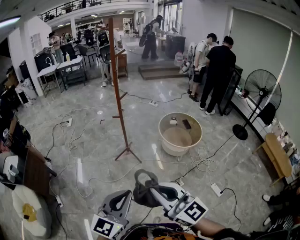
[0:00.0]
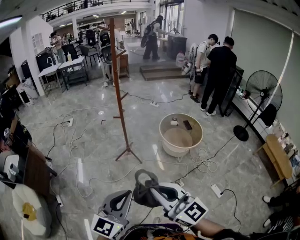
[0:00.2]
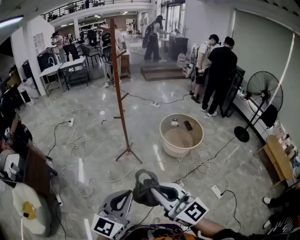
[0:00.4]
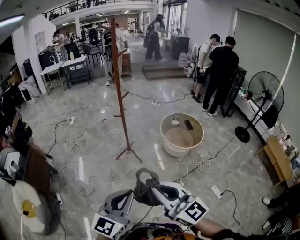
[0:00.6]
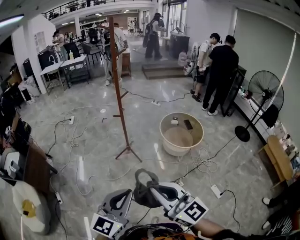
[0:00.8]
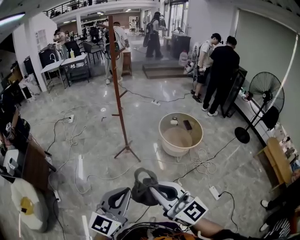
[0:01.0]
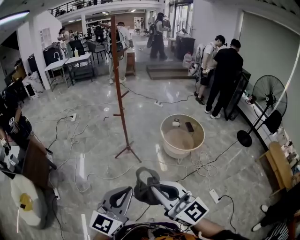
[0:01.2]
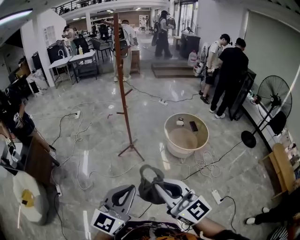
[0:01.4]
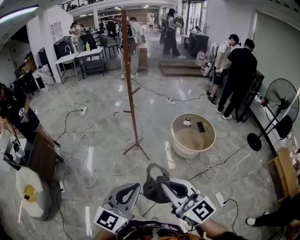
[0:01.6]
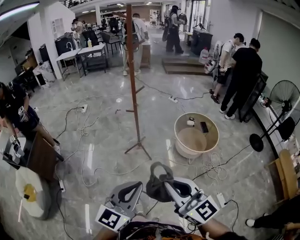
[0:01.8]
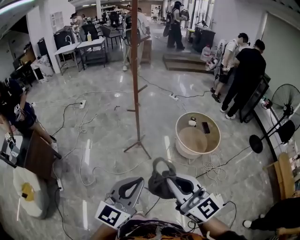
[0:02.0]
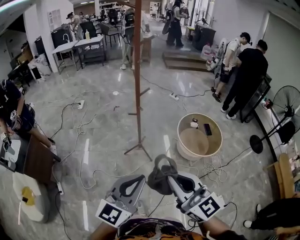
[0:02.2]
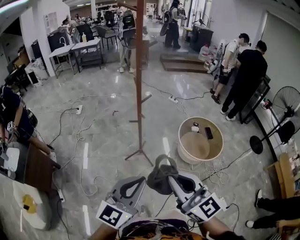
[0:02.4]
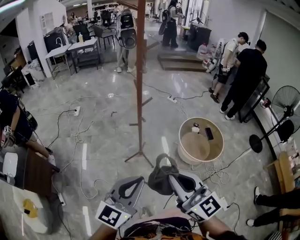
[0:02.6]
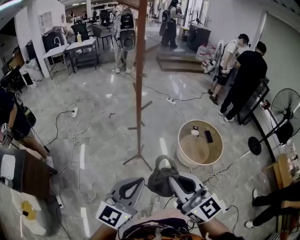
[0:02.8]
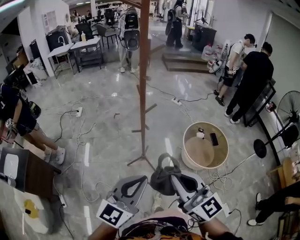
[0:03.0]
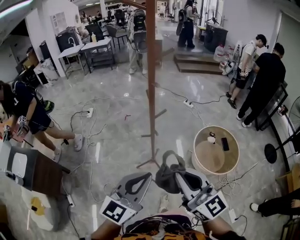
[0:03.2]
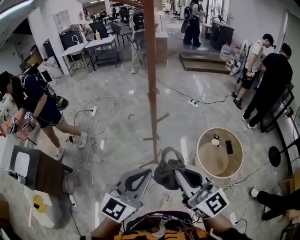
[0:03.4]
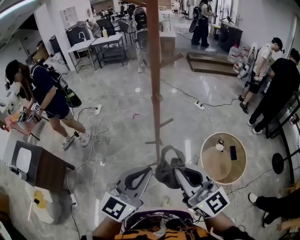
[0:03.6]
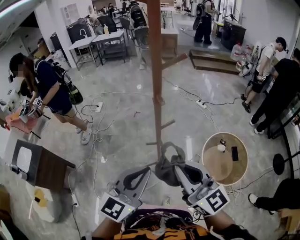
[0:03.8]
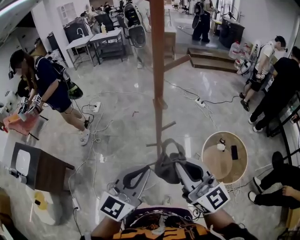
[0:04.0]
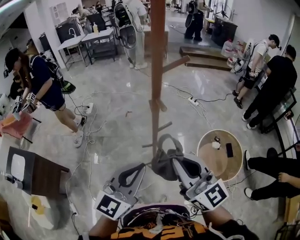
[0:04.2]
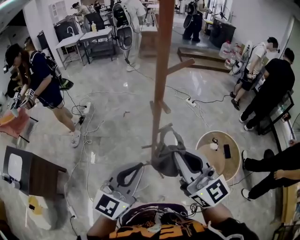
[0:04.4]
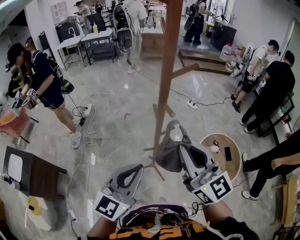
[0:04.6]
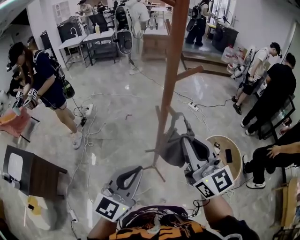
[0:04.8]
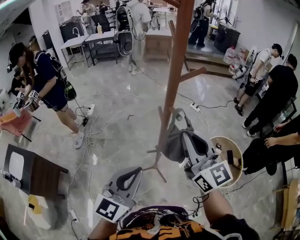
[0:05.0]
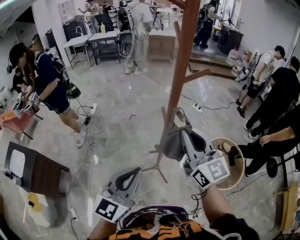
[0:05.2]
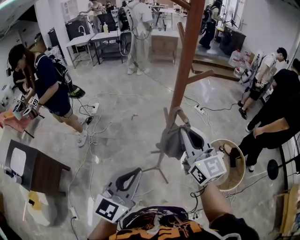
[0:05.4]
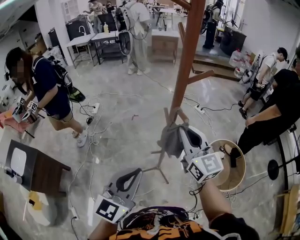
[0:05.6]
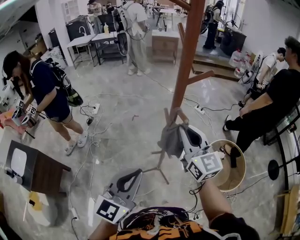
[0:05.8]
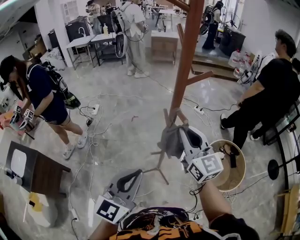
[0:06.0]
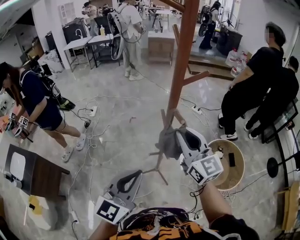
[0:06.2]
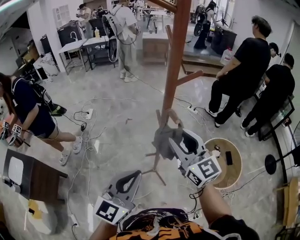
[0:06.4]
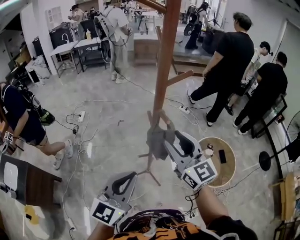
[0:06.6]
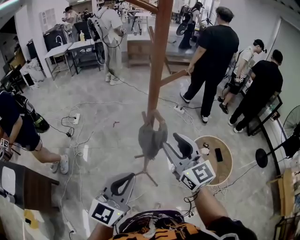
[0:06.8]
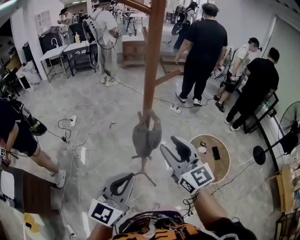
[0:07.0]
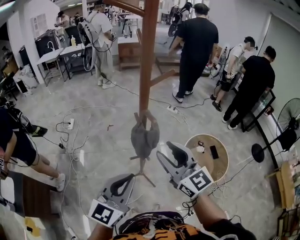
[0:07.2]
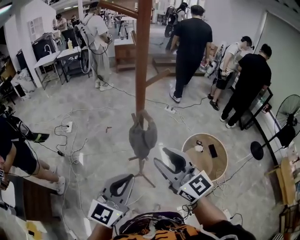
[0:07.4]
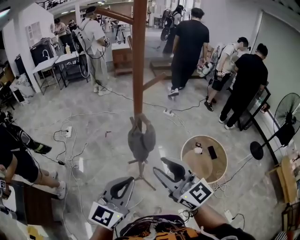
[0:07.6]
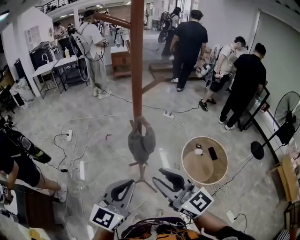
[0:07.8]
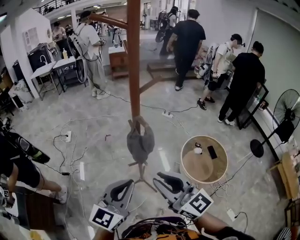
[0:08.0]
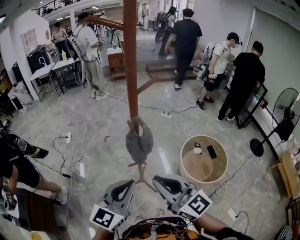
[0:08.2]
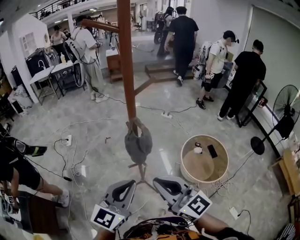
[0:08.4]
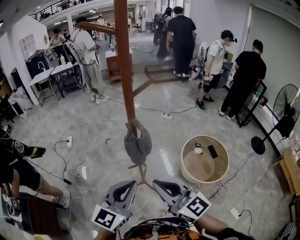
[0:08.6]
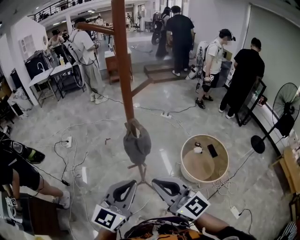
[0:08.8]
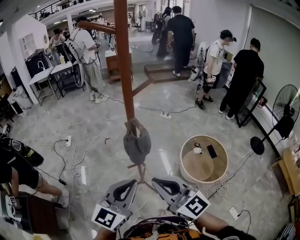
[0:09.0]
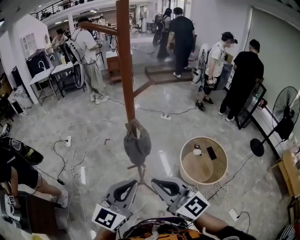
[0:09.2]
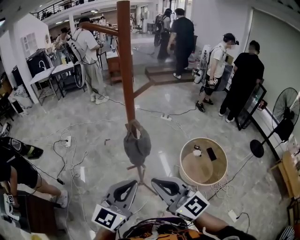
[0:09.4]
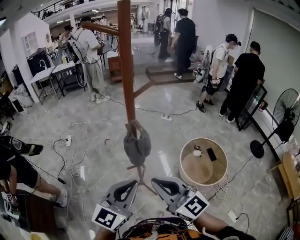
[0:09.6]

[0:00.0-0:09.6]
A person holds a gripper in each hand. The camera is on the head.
0:00.0 to 0:01.6: The grippers both shift to the right by approximately 5 cm.
0:01.6 to 0:03.2: The pair of grippers is taken forward, some 40 cm.
0:03.2 to 0:04.8: Both grippers move forward, approximately 20 cm.
0:04.8 to 0:06.4: The right gripper goes about 5 cm downward, and opens its fingers.
0:06.4 to 0:08.0: The right gripper goes about 15 cm backward.
0:08.0 to 0:09.6: The right gripper closes.

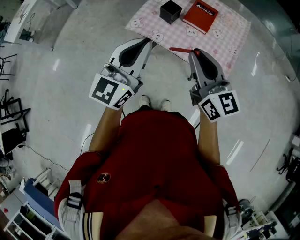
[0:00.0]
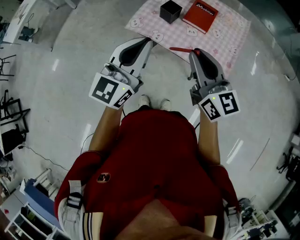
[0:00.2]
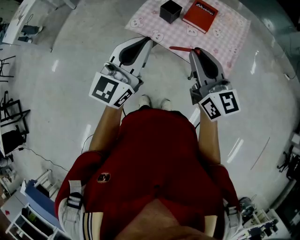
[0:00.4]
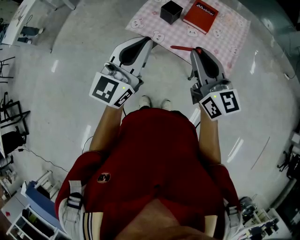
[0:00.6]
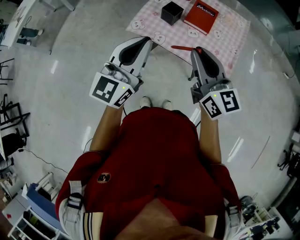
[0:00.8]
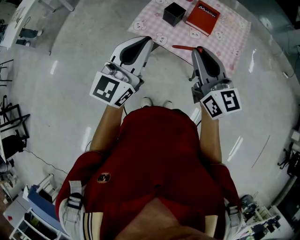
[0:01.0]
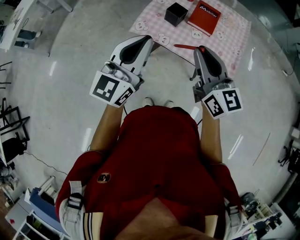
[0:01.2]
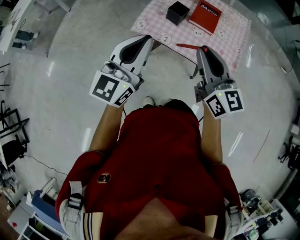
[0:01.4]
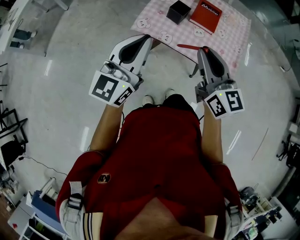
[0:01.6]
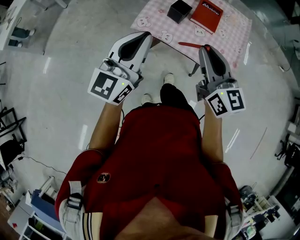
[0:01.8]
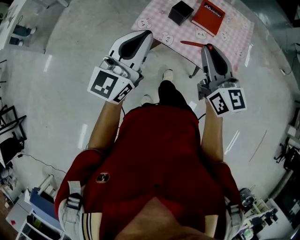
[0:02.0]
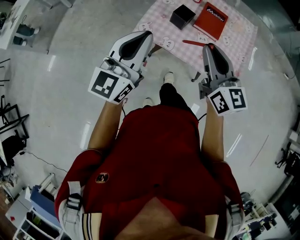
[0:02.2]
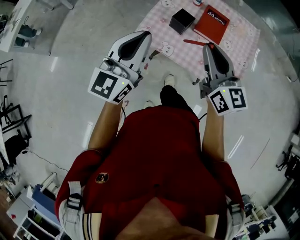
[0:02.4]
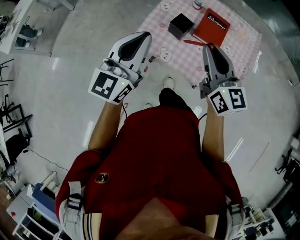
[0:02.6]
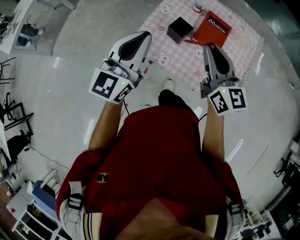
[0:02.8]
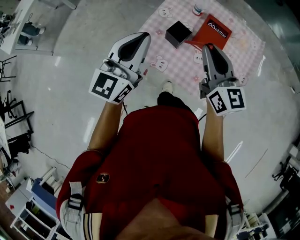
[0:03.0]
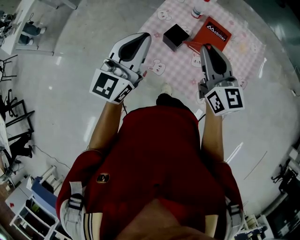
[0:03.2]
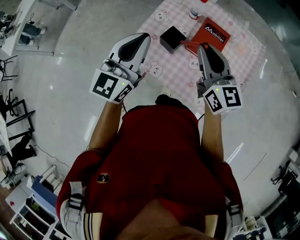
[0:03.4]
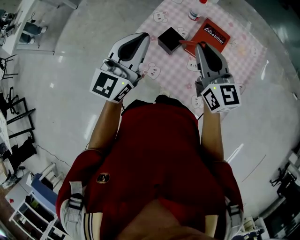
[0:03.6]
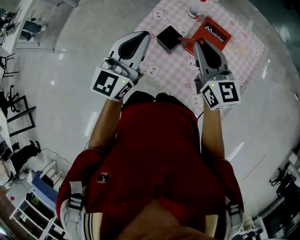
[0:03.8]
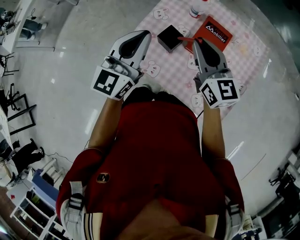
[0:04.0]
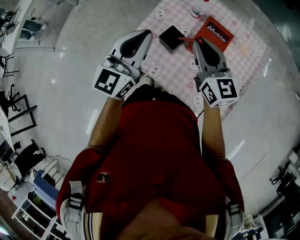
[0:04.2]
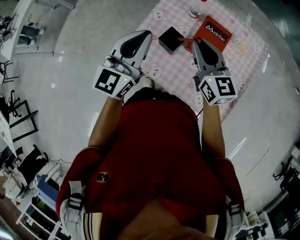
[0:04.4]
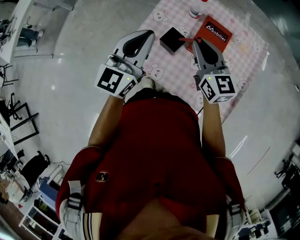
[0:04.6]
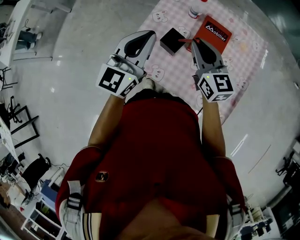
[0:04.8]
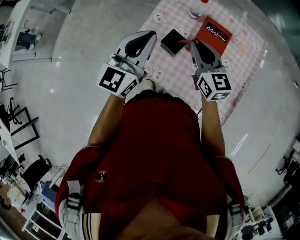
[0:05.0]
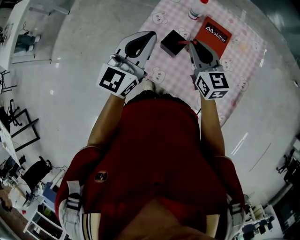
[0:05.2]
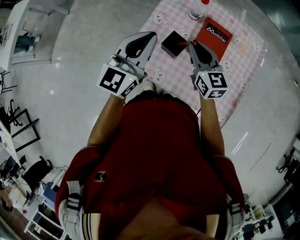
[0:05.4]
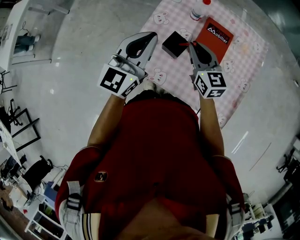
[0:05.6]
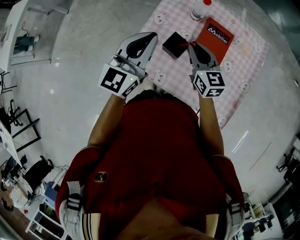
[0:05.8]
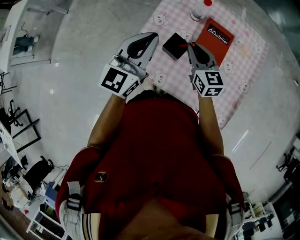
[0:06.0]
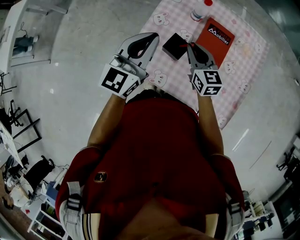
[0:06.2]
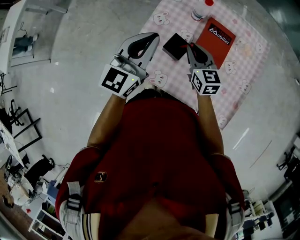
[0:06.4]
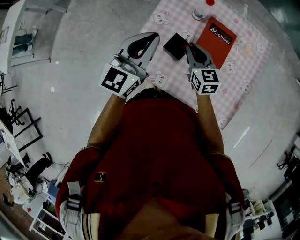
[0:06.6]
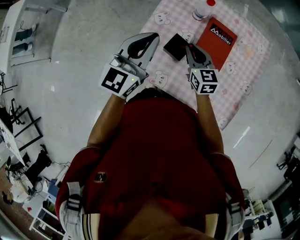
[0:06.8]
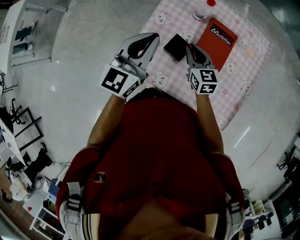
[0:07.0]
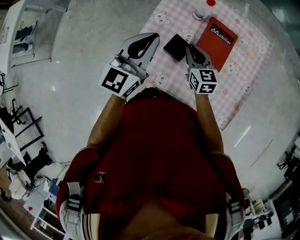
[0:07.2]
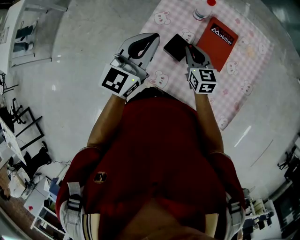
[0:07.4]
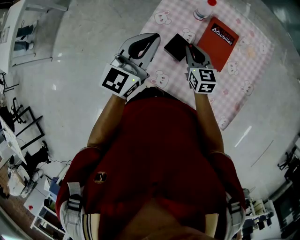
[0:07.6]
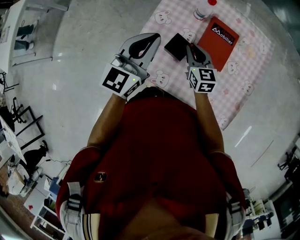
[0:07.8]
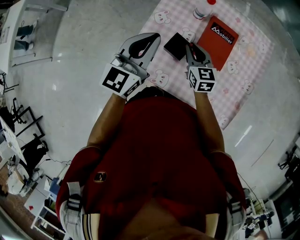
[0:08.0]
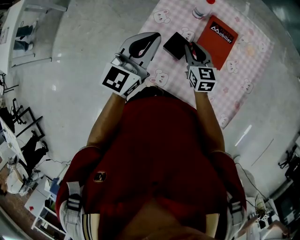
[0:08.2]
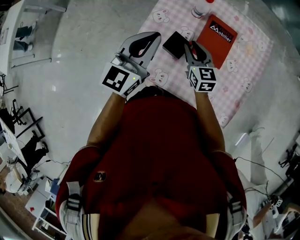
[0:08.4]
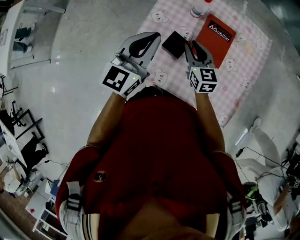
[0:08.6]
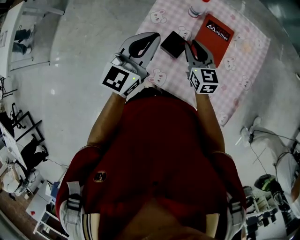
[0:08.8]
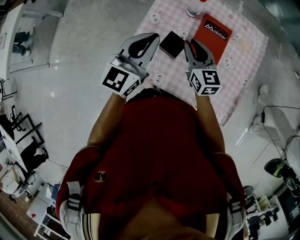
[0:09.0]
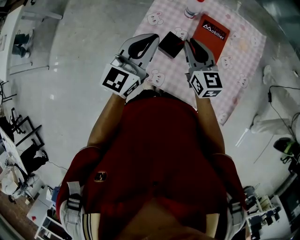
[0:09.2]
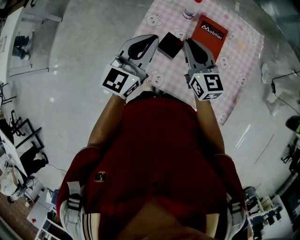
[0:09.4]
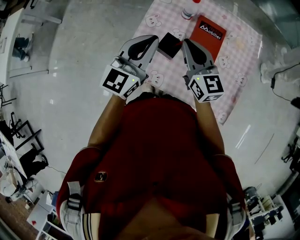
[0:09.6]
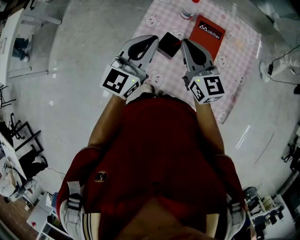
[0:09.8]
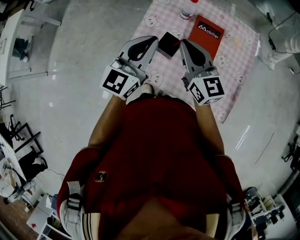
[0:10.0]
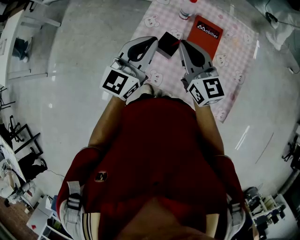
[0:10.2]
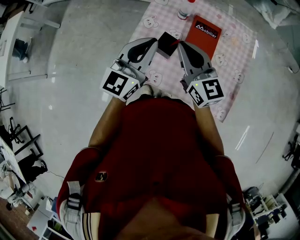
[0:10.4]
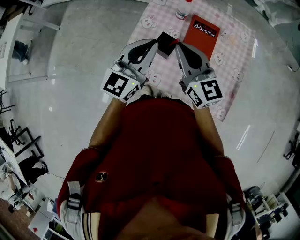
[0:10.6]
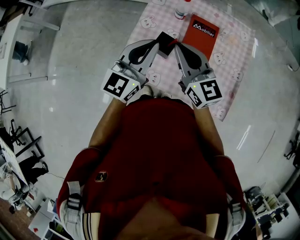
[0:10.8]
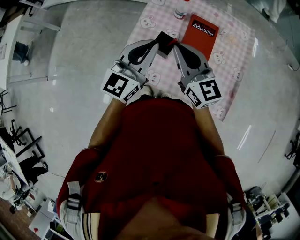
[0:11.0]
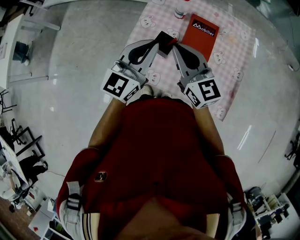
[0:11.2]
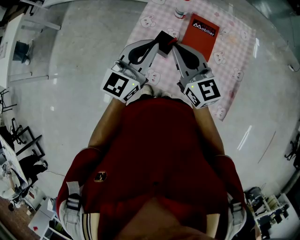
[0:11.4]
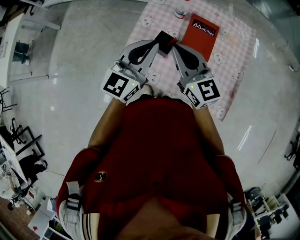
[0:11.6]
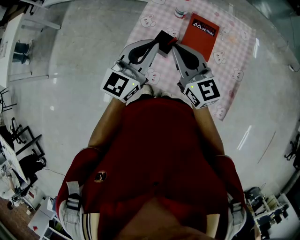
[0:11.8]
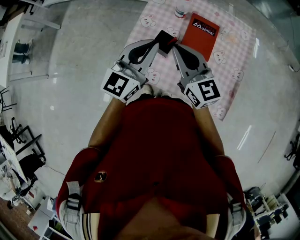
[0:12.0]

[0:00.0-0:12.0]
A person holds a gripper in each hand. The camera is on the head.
0:00.0 to 0:01.6: The two grippers go approximately 10 cm to the left.
0:01.6 to 0:03.0: Both grippers move forward, about 20 cm.
0:03.0 to 0:04.4: The left gripper is displaced forward by approximately 10 cm. The right gripper travels forward and downward by roughly 10 cm.
0:04.4 to 0:06.0: The right gripper heads downward, covering approximately 10 cm, while the left gripper shifts by roughly 5 cm.
0:06.0 to 0:07.6: The right gripper is displaced downward by roughly 5 cm.
0:07.6 to 0:09.0: The right gripper is displaced upward by about 5 cm.
0:09.0 to 0:10.4: The right gripper shifts roughly 15 cm upward and backward, and closes its fingers.
0:10.4 to 0:12.0: The grippers make only small movements.

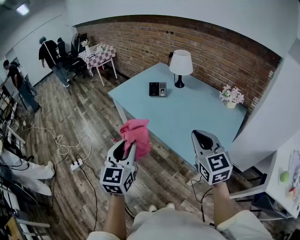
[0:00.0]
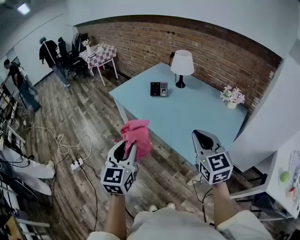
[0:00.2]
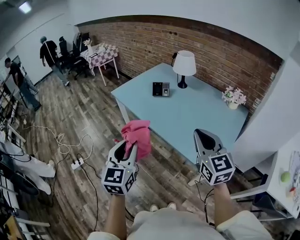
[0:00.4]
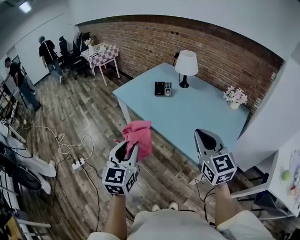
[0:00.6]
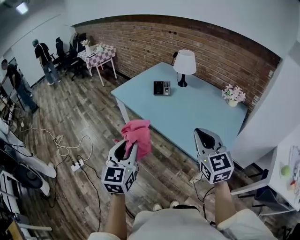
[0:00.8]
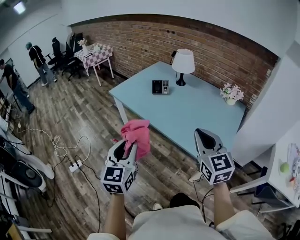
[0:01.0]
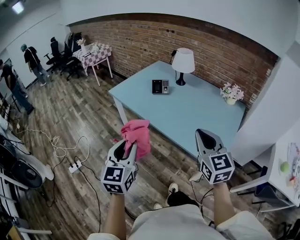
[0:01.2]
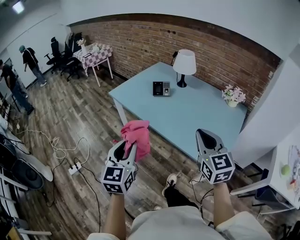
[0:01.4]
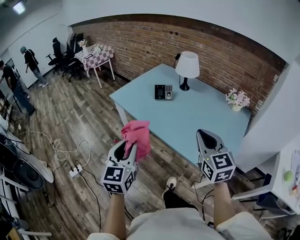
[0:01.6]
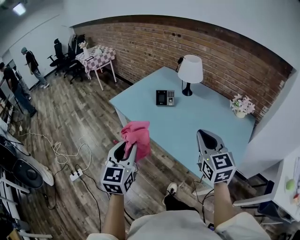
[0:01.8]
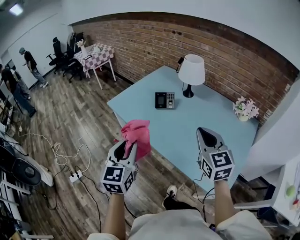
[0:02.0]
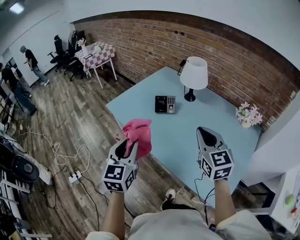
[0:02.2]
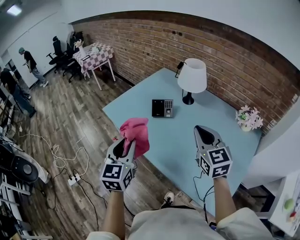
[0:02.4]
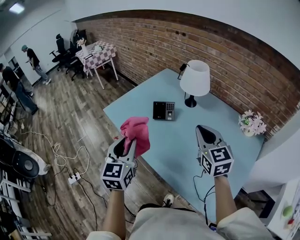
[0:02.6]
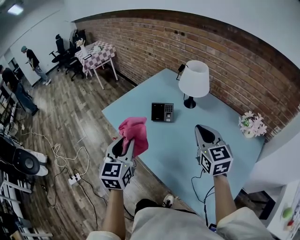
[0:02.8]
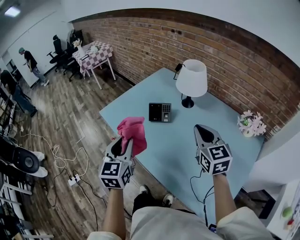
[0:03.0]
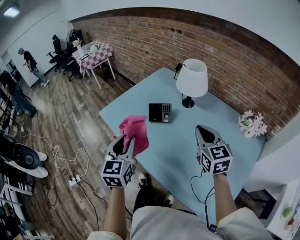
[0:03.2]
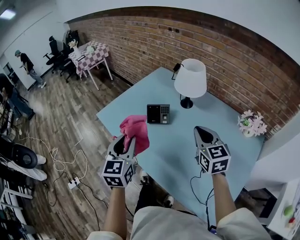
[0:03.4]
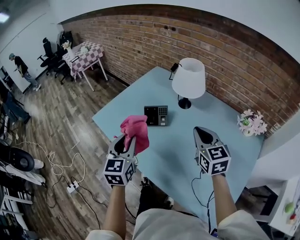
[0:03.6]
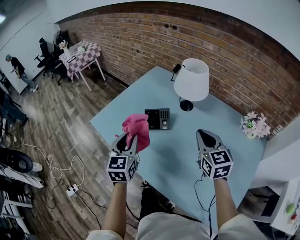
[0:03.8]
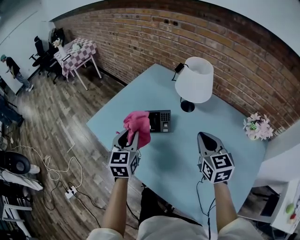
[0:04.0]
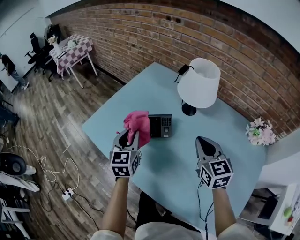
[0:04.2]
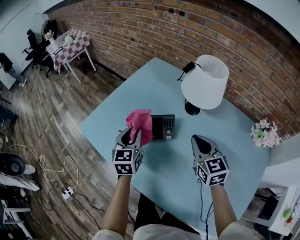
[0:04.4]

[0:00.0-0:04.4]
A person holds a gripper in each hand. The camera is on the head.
0:00.0 to 0:01.4: The two grippers go approximately 5 cm to the left.
0:01.4 to 0:03.0: The two grippers go about 35 cm forward.
0:03.0 to 0:04.4: The grippers both shift forward and downward by about 30 cm.
